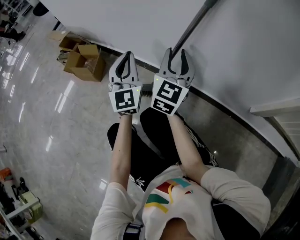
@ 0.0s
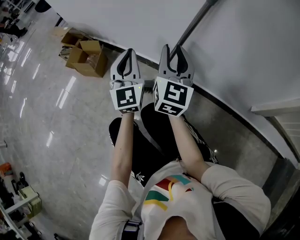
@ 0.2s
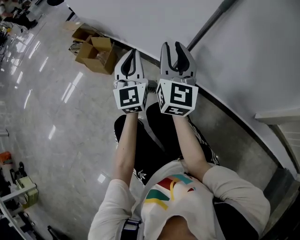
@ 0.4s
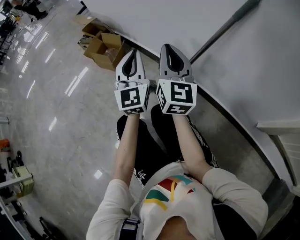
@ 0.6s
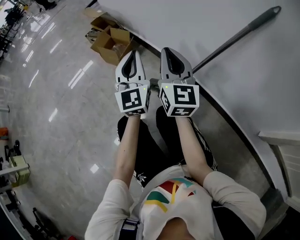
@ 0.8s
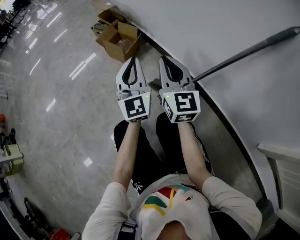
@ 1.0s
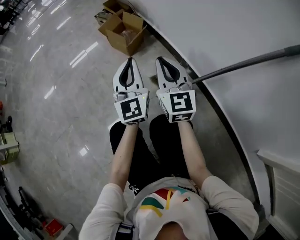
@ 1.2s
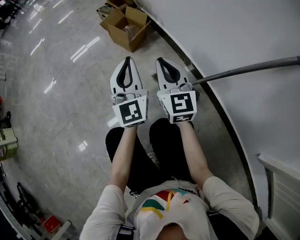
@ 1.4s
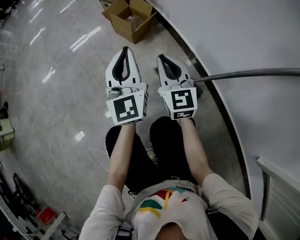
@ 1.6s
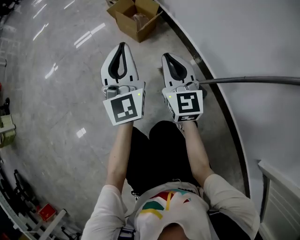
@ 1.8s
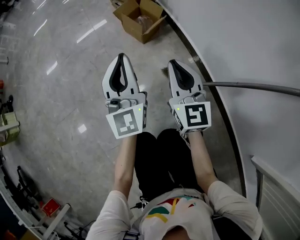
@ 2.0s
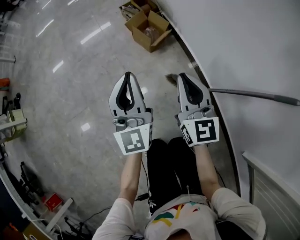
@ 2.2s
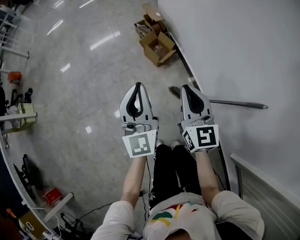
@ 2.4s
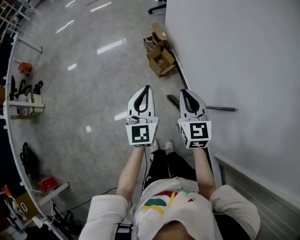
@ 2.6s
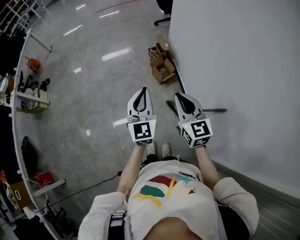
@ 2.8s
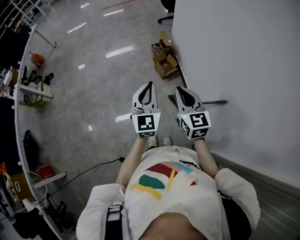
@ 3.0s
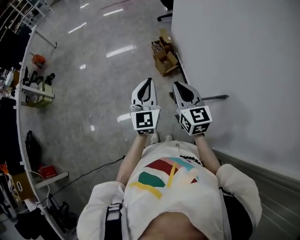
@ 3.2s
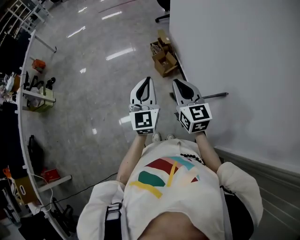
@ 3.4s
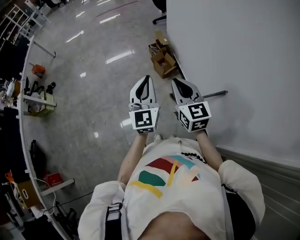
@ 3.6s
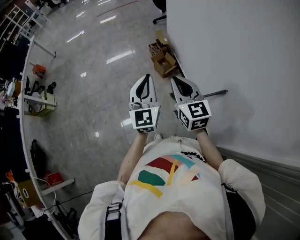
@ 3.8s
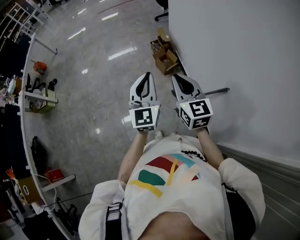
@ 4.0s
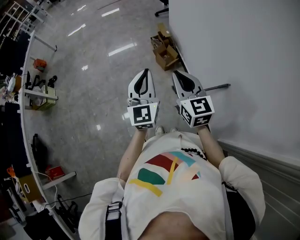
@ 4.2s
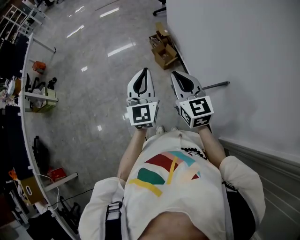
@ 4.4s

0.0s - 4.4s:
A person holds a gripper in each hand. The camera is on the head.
0.0s - 1.4s: The left gripper changes place by about 20 cm, and rotates roughly 30 degrees. Meanwhile the right gripper moves roughly 25 cm, changes its angle by approximately 60 degrees, and closes.
1.4s - 3.0s: The two grippers go some 60 cm upward. The right gripper changes its angle by approximately 20 degrees.
3.0s - 4.4s: The grippers move only a little.

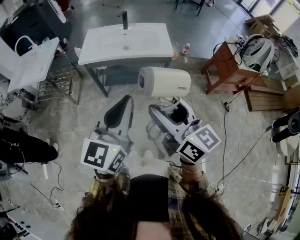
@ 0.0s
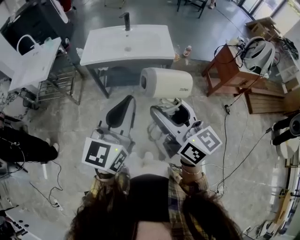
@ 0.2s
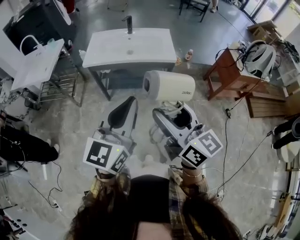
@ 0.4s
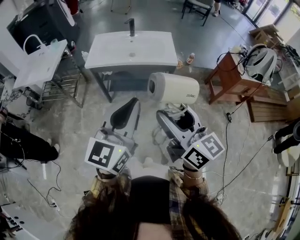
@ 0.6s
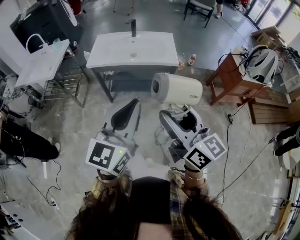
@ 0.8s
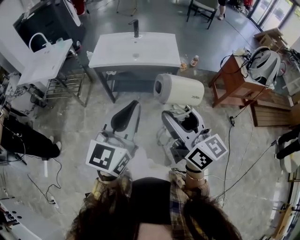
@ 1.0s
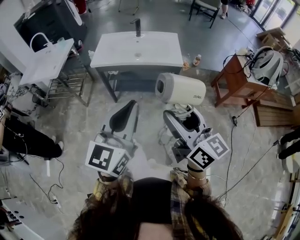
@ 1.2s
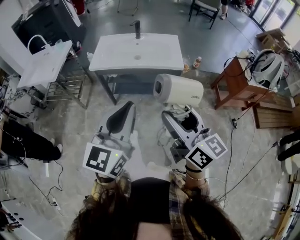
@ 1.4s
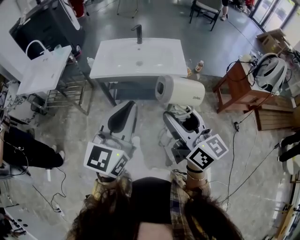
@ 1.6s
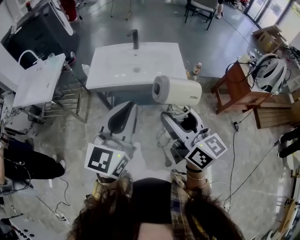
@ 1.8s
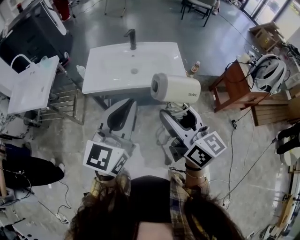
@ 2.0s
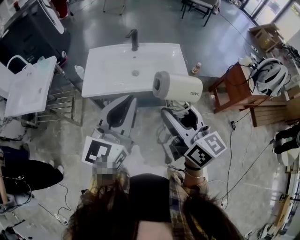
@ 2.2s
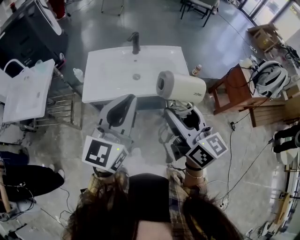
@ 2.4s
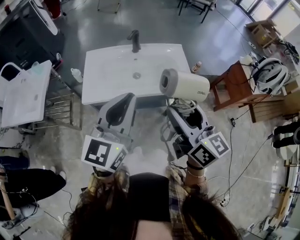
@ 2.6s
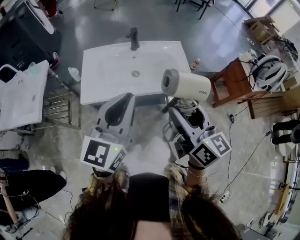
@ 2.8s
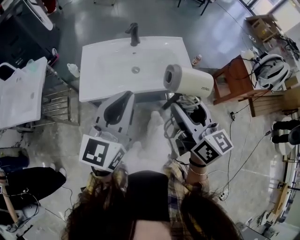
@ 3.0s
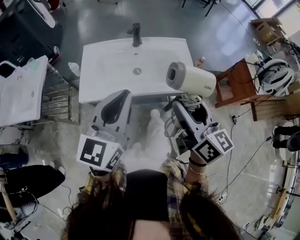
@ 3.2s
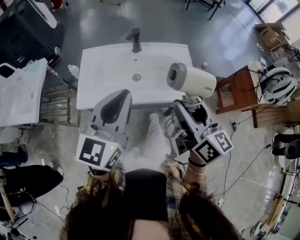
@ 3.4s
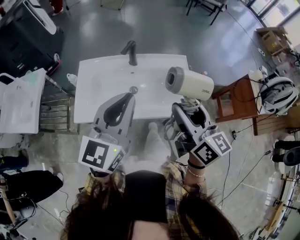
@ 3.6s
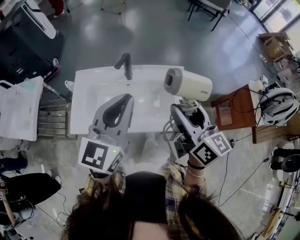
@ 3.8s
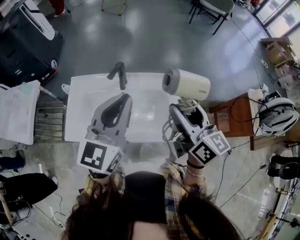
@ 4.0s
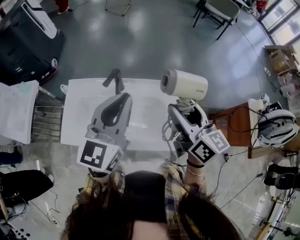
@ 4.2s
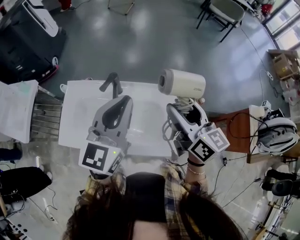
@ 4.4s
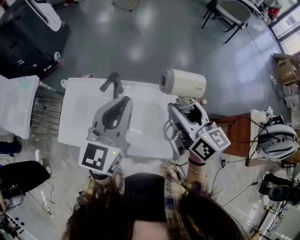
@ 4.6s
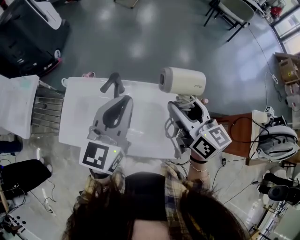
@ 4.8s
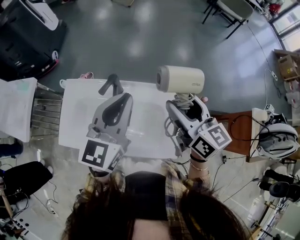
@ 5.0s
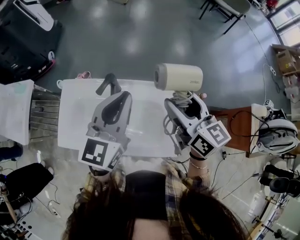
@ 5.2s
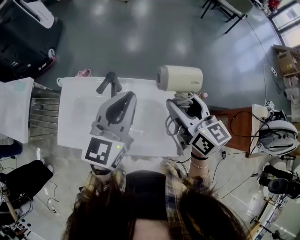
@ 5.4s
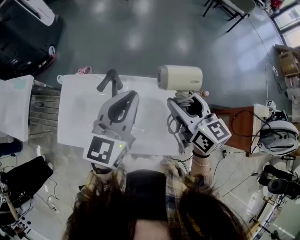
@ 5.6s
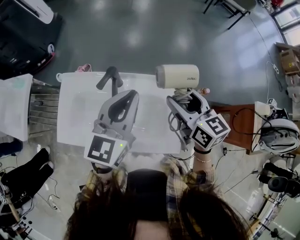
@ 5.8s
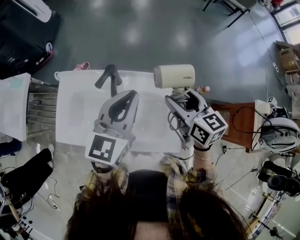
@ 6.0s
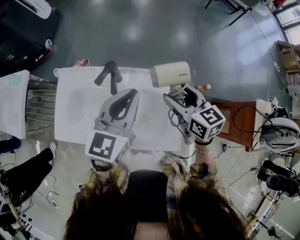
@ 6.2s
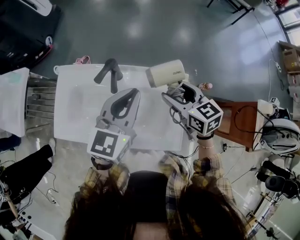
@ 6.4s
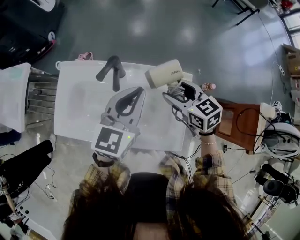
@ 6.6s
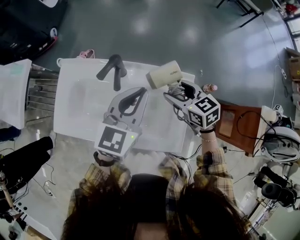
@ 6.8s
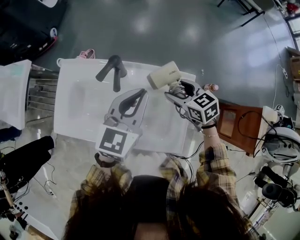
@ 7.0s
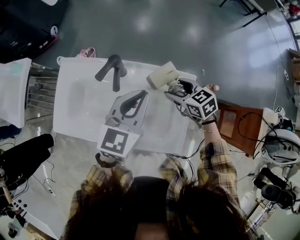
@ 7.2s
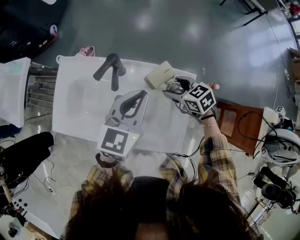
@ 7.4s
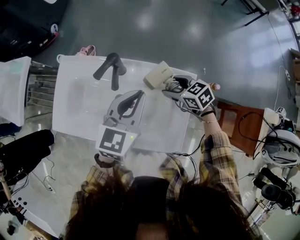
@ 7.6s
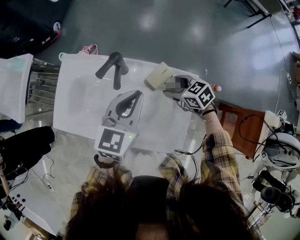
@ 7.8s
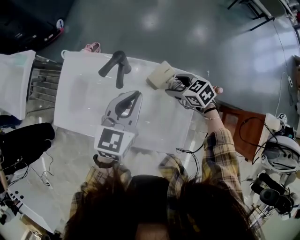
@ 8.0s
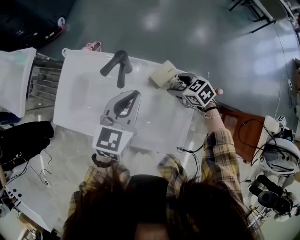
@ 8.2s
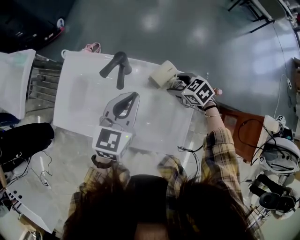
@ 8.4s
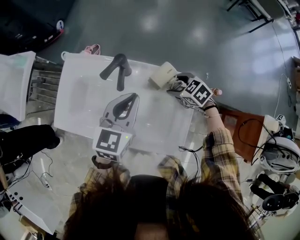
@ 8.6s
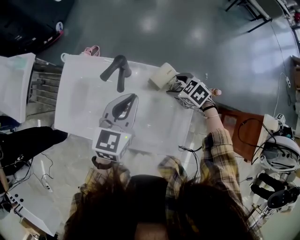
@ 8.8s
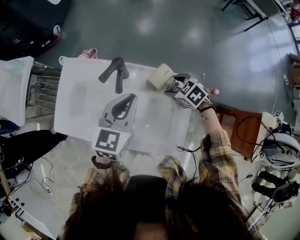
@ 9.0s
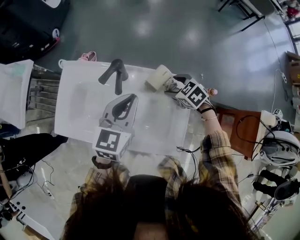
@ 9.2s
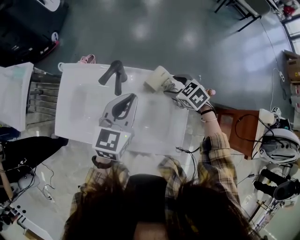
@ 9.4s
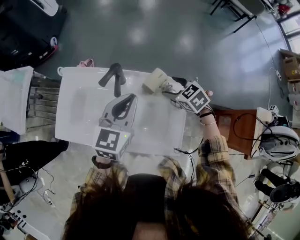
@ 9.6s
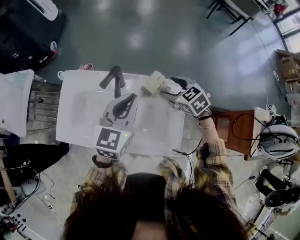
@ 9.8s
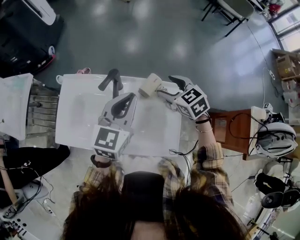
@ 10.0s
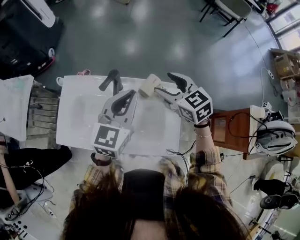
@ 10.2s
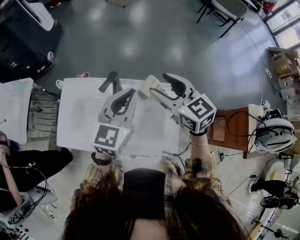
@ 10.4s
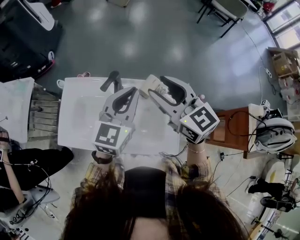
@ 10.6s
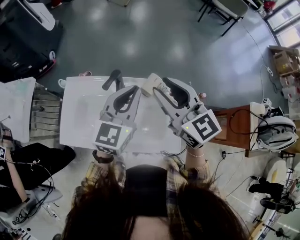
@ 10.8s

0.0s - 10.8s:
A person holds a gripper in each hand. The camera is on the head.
0.0s - 1.6s: Both grippers move forward, some 10 cm.
1.6s - 3.0s: Both grippers travel together forward, some 25 cm.
3.0s - 4.6s: The left gripper goes approximately 35 cm forward and to the right. The right gripper goes roughly 40 cm forward.
4.6s - 6.2s: Both grippers move downward, approximately 10 cm. The right gripper changes its angle by roughly 20 degrees.
6.2s - 7.8s: The left gripper moves downward, about 10 cm; the right gripper is displaced downward by some 15 cm, and rotates roughly 40 degrees.
7.8s - 9.2s: There are only small adjustments of the grippers.
9.2s - 10.8s: The right gripper heads upward, covering roughly 30 cm, angles its fingers upward, by about 50 degrees, and closes its fingers, while the left gripper goes some 10 cm upward.

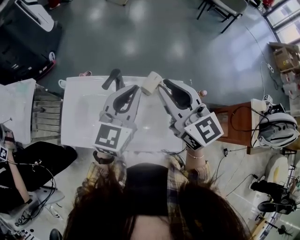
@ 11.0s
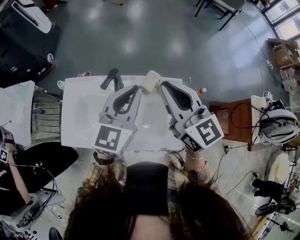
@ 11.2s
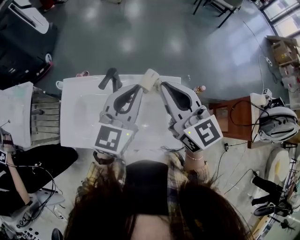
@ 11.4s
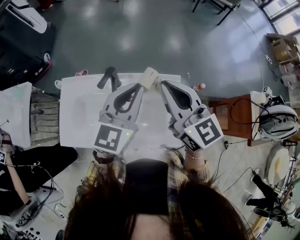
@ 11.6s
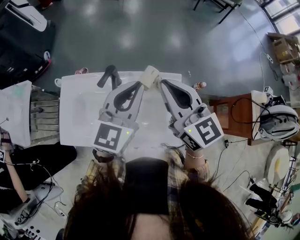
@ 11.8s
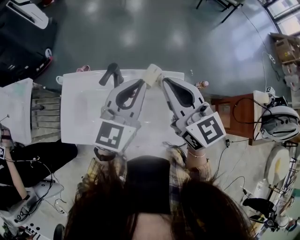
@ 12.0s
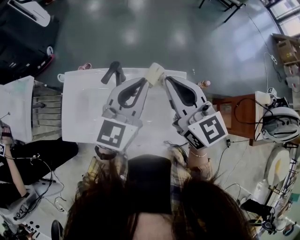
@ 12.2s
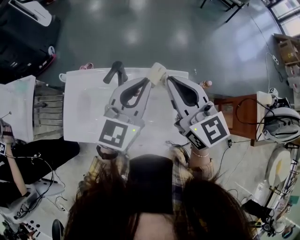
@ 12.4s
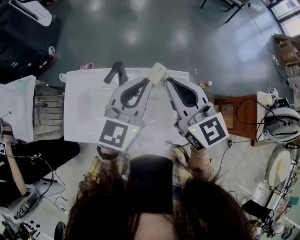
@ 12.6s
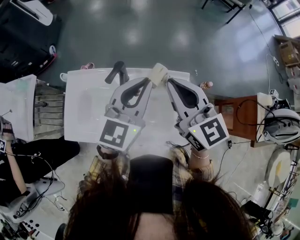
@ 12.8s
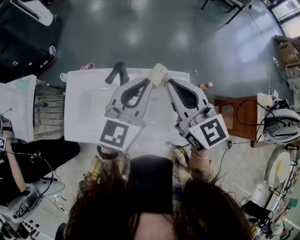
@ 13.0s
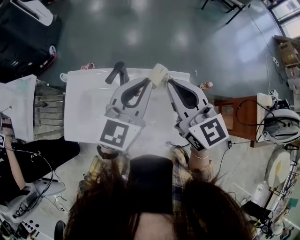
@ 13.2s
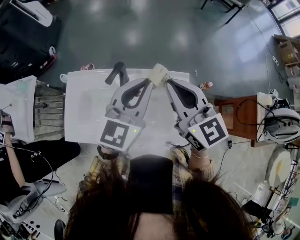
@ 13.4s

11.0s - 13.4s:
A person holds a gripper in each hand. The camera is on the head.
11.0s - 12.2s: The grippers move only a little.
12.2s - 13.4s: Both grippers stay put.

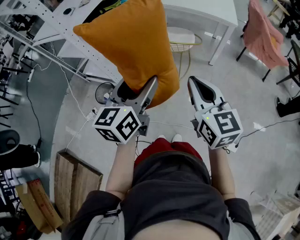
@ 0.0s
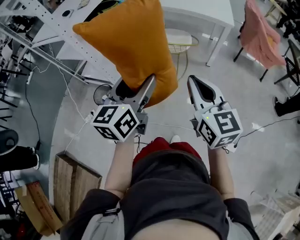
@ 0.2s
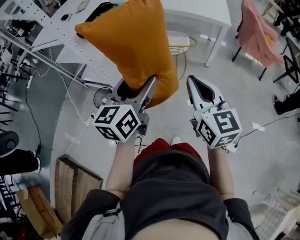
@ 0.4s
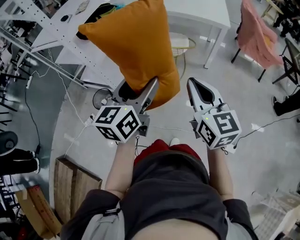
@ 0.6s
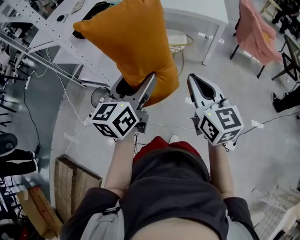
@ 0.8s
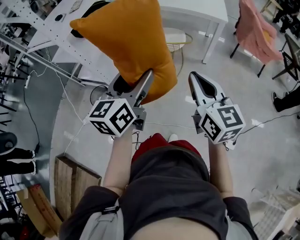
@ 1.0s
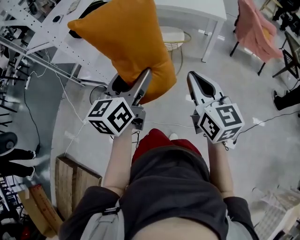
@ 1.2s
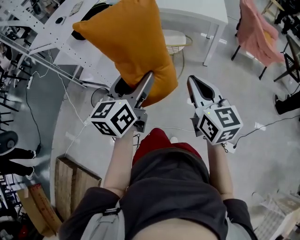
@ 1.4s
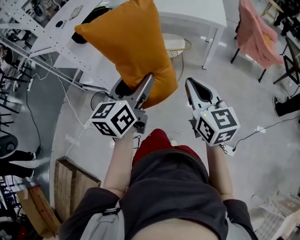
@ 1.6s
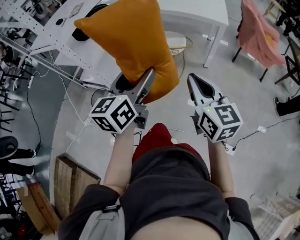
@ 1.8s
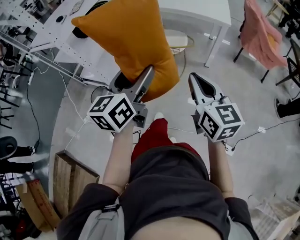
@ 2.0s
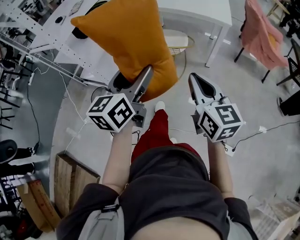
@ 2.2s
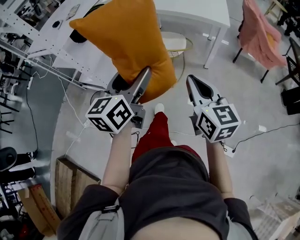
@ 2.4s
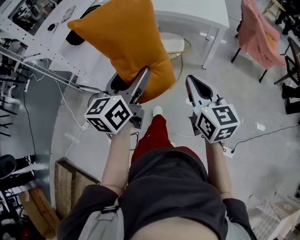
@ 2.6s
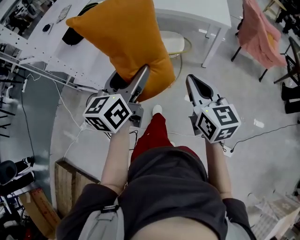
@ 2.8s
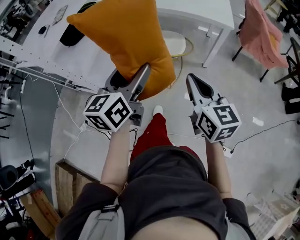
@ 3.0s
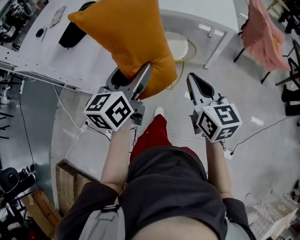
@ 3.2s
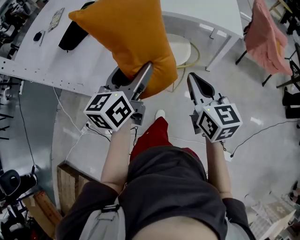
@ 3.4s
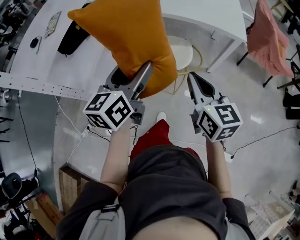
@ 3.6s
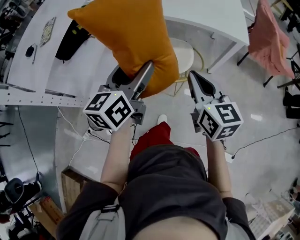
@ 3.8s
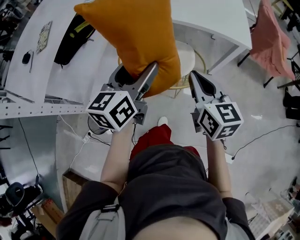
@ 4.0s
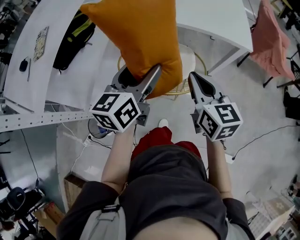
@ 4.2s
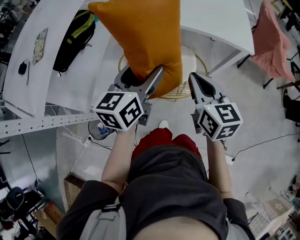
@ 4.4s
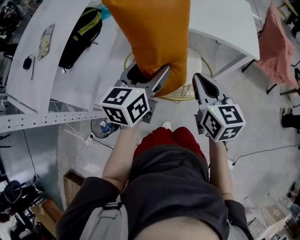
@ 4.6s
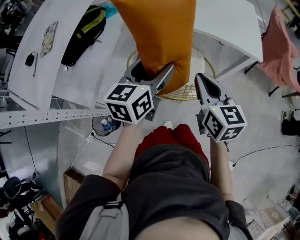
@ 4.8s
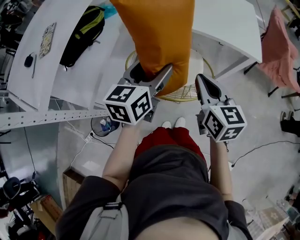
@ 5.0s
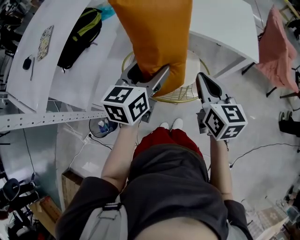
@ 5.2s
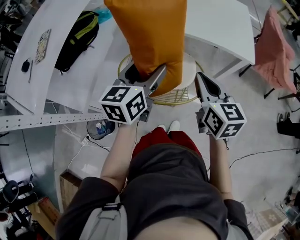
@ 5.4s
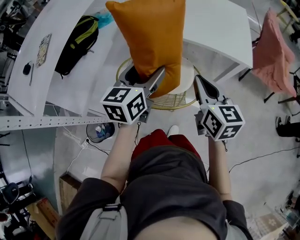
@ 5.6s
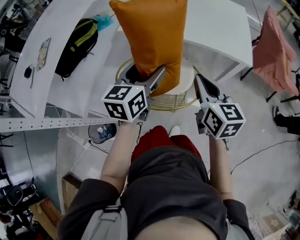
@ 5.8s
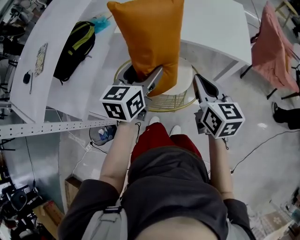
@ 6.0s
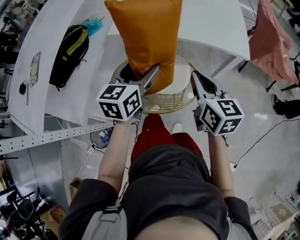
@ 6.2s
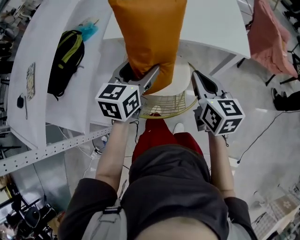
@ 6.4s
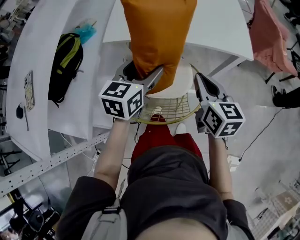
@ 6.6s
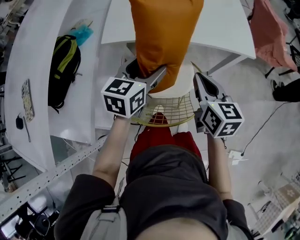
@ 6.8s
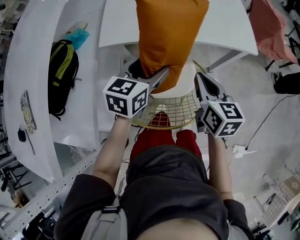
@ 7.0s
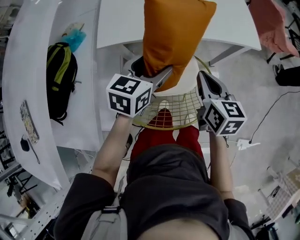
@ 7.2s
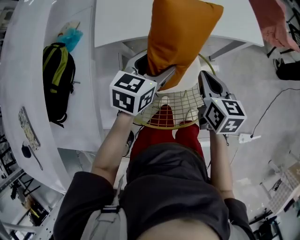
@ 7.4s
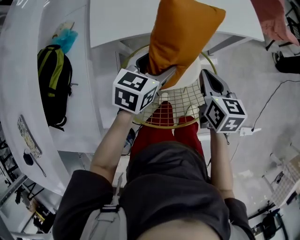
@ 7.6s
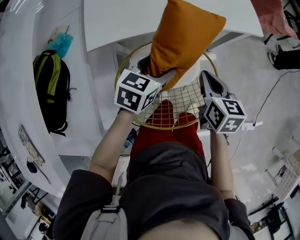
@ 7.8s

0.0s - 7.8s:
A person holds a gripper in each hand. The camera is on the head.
0.0s - 1.6s: Both grippers travel together to the right, about 5 cm.
1.6s - 3.2s: The grippers both shift forward by approximately 20 cm.
3.2s - 4.6s: Both grippers travel together forward, roughly 25 cm.
4.6s - 6.2s: The left gripper heads forward and to the right, covering some 10 cm. Meanwhile the right gripper shifts some 10 cm to the right and forward.
6.2s - 7.8s: The grippers both shift downward by some 15 cm. The left gripper swivels about 40 degrees. Meanwhile the right gripper rotates roughly 30 degrees.
